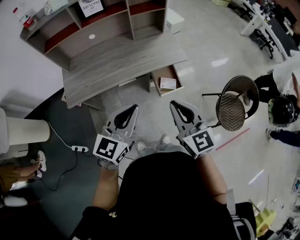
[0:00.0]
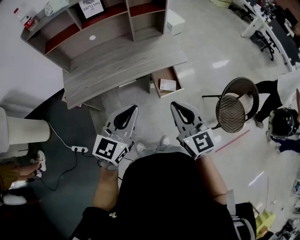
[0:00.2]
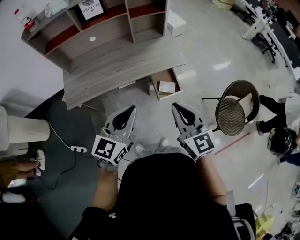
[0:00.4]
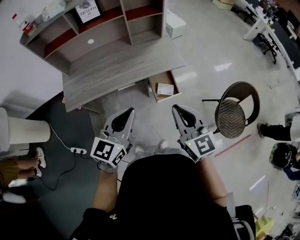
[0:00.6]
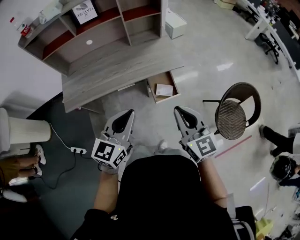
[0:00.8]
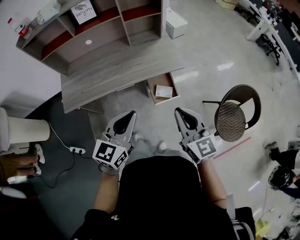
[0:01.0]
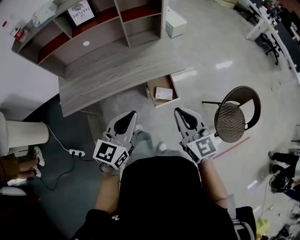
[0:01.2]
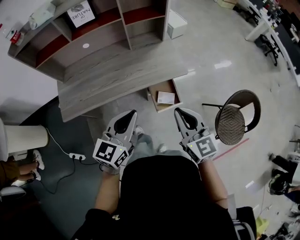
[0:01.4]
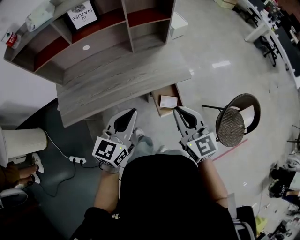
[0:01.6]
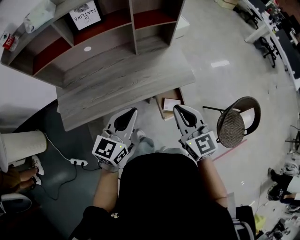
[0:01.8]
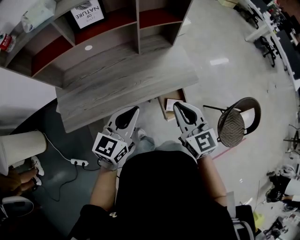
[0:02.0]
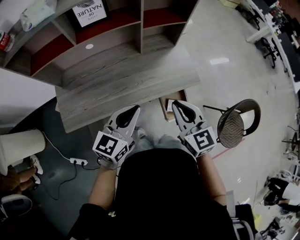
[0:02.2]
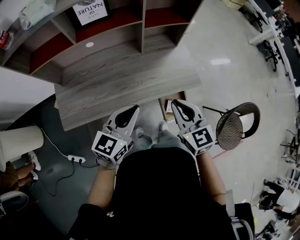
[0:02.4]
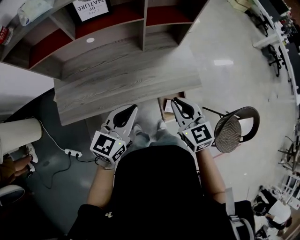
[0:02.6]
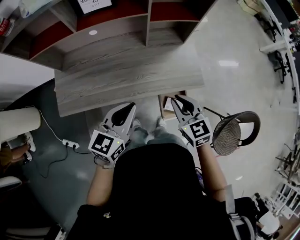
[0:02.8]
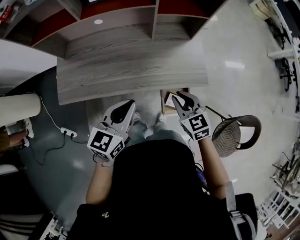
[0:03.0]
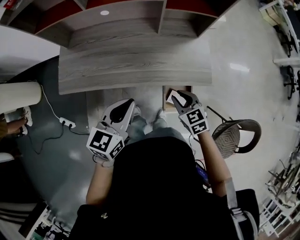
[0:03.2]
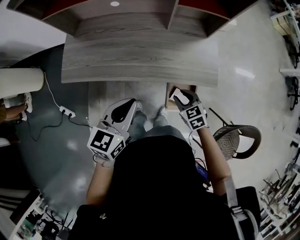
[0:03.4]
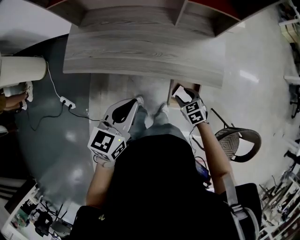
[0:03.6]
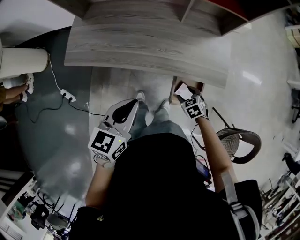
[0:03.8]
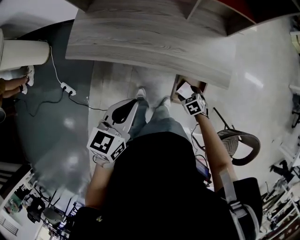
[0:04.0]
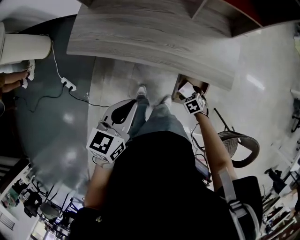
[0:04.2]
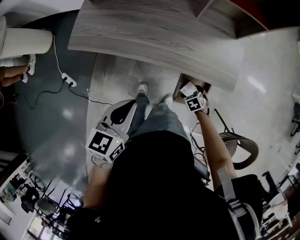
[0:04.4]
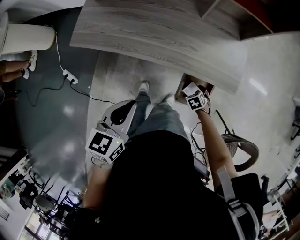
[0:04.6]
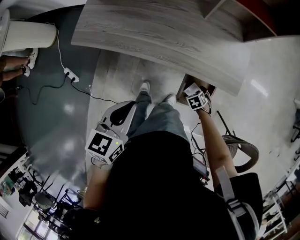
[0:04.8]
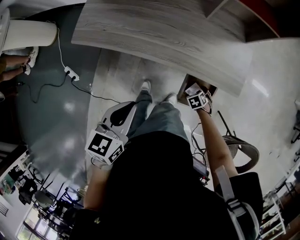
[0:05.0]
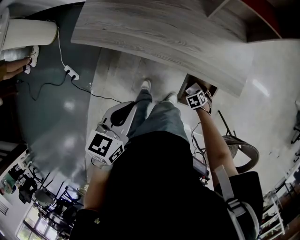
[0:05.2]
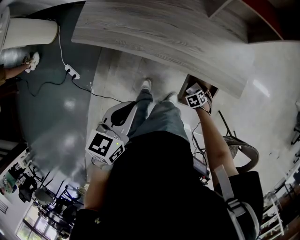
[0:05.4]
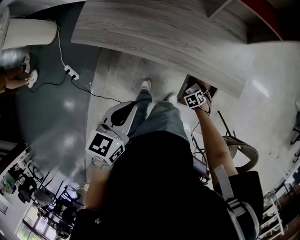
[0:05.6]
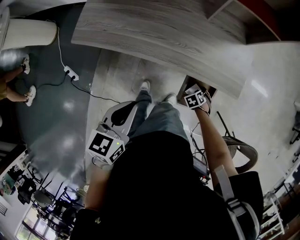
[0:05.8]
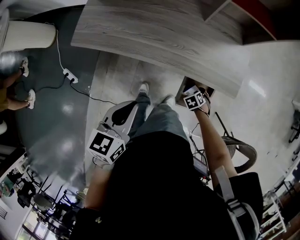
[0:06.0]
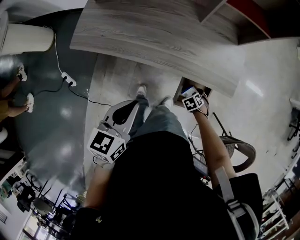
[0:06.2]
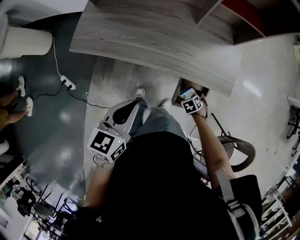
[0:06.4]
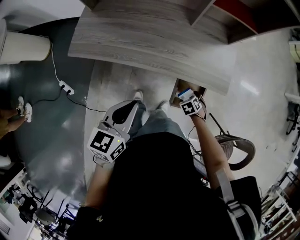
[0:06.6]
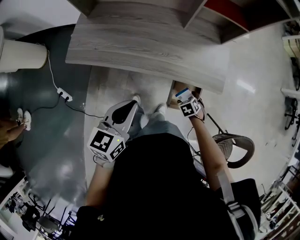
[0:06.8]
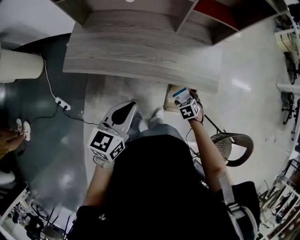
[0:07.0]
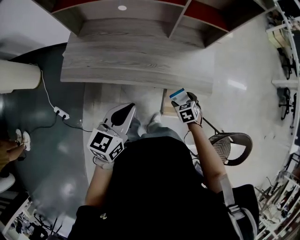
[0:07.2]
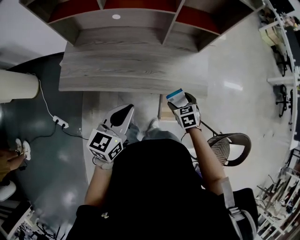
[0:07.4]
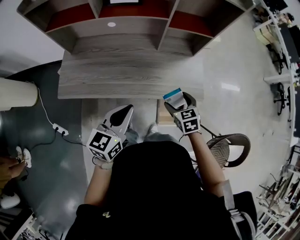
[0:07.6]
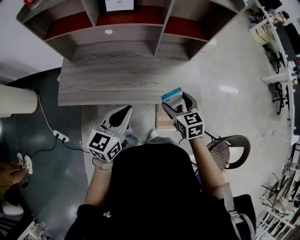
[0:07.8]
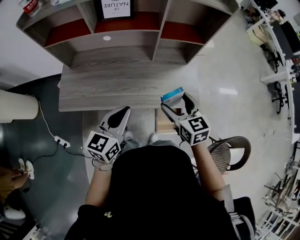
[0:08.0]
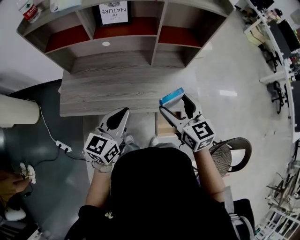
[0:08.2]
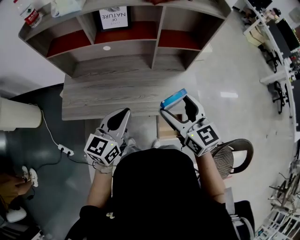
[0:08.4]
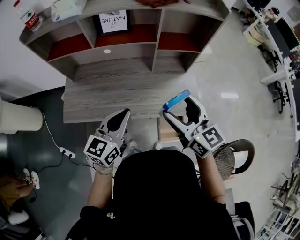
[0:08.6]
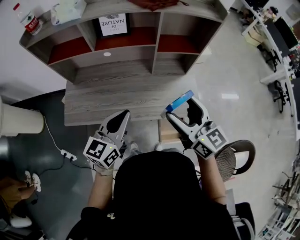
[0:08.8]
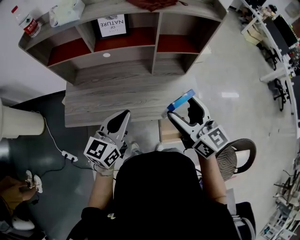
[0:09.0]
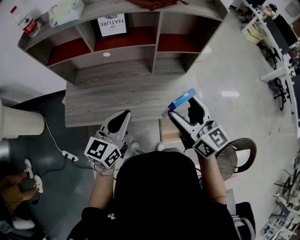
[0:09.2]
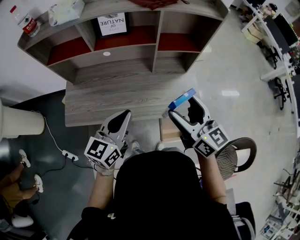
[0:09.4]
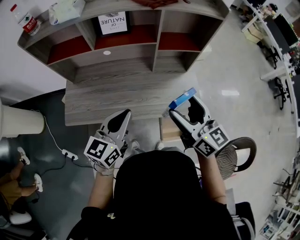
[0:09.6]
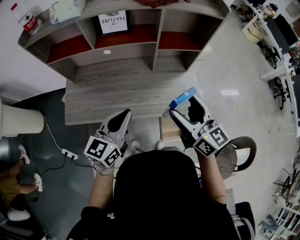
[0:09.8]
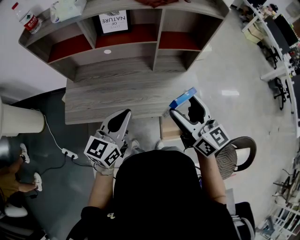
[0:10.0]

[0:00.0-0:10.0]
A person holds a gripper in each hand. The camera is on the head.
0:00.0 to 0:01.4: The left gripper travels forward by about 10 cm; the right gripper goes some 15 cm forward and to the right.
0:01.4 to 0:02.8: The right gripper moves forward, downward and to the left, some 20 cm, and rotates some 20 degrees, while the left gripper travels forward and to the left by some 15 cm.
0:02.8 to 0:04.2: The left gripper moves about 15 cm, and swivels about 30 degrees. The right gripper heads downward, covering about 35 cm, tilts its fingers approximately 50 degrees downward, and opens up.
0:04.2 to 0:05.8: The right gripper moves downward, some 10 cm.
0:05.8 to 0:07.2: The right gripper travels upward by about 20 cm, and rotates about 20 degrees, while the left gripper heads upward, covering roughly 5 cm.
0:07.2 to 0:08.6: The right gripper travels upward by approximately 40 cm, and angles its fingers upward, by some 60 degrees; the left gripper heads upward and forward, covering roughly 10 cm.
0:08.6 to 0:10.0: There are only small adjustments of the grippers.

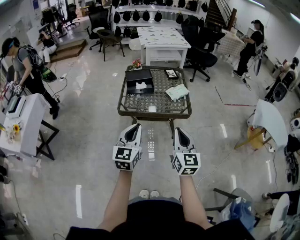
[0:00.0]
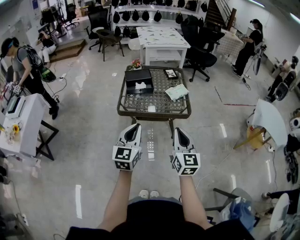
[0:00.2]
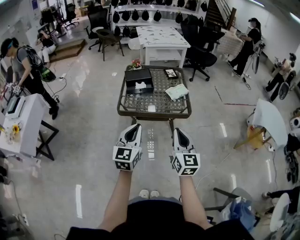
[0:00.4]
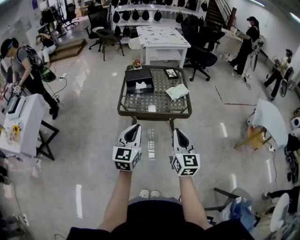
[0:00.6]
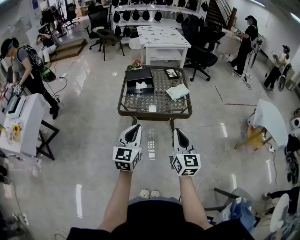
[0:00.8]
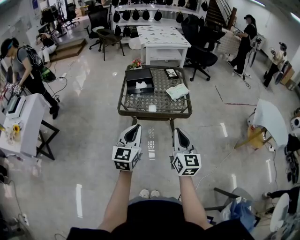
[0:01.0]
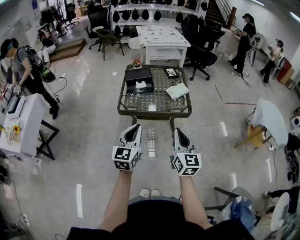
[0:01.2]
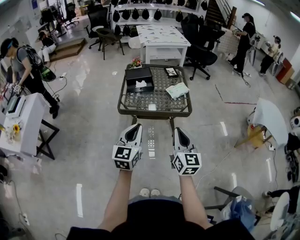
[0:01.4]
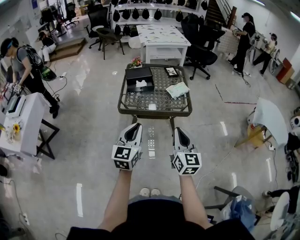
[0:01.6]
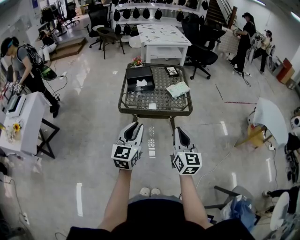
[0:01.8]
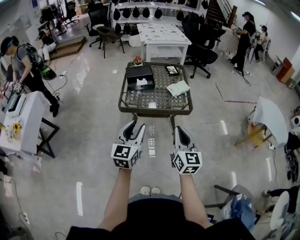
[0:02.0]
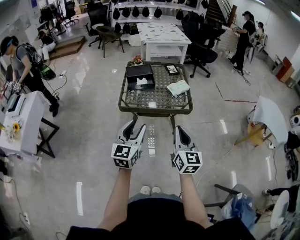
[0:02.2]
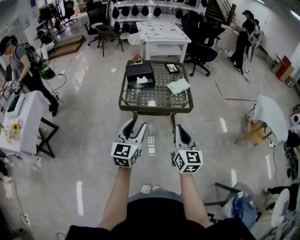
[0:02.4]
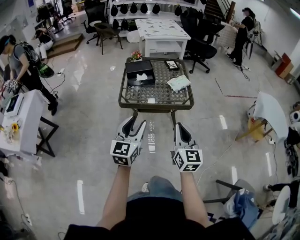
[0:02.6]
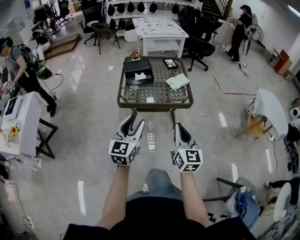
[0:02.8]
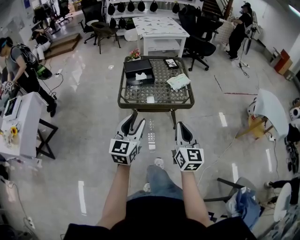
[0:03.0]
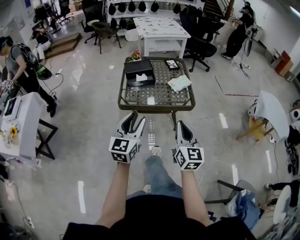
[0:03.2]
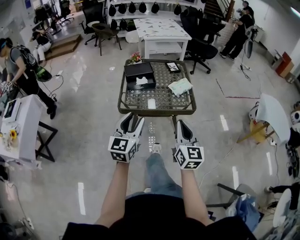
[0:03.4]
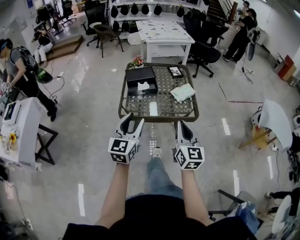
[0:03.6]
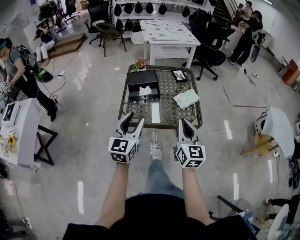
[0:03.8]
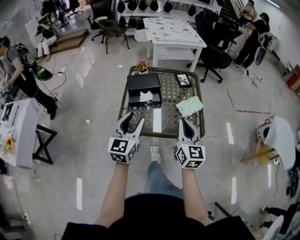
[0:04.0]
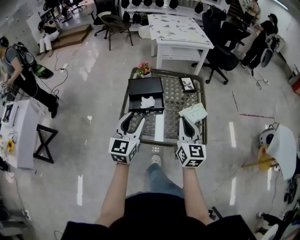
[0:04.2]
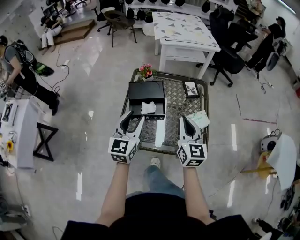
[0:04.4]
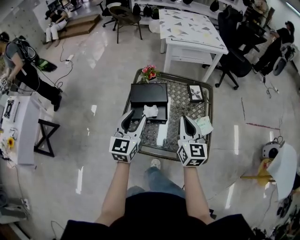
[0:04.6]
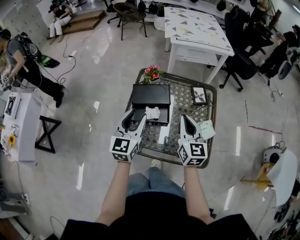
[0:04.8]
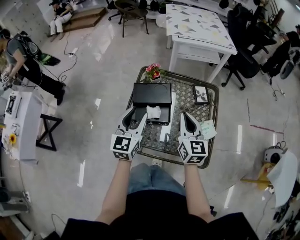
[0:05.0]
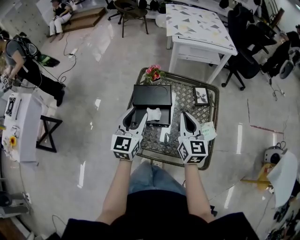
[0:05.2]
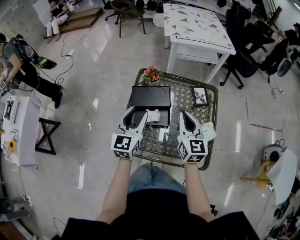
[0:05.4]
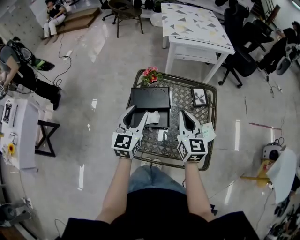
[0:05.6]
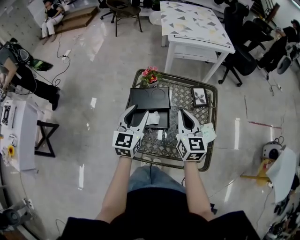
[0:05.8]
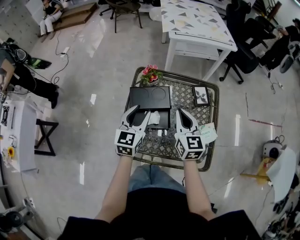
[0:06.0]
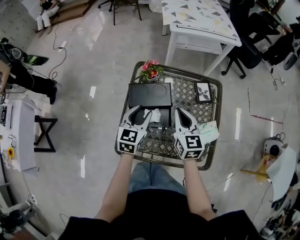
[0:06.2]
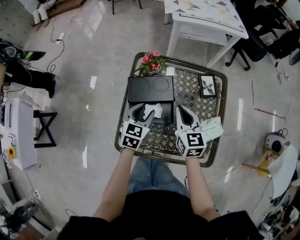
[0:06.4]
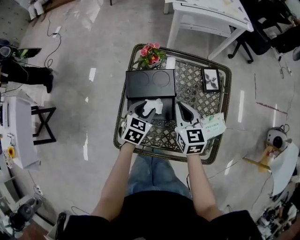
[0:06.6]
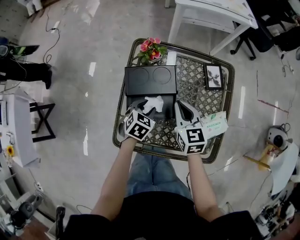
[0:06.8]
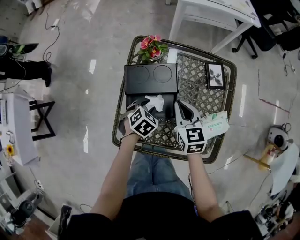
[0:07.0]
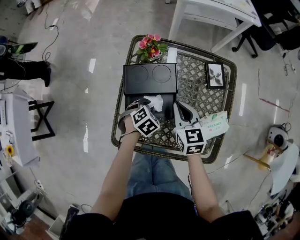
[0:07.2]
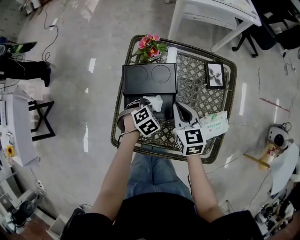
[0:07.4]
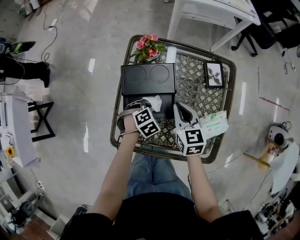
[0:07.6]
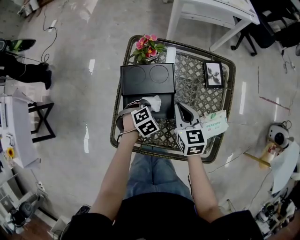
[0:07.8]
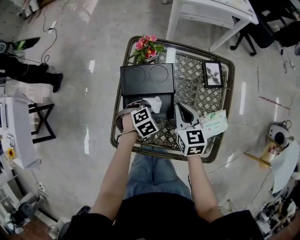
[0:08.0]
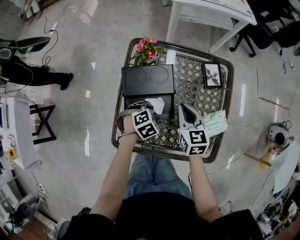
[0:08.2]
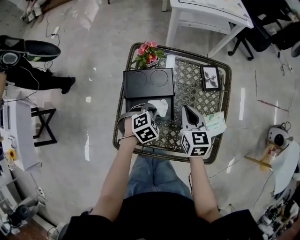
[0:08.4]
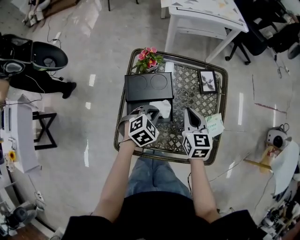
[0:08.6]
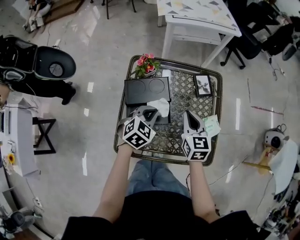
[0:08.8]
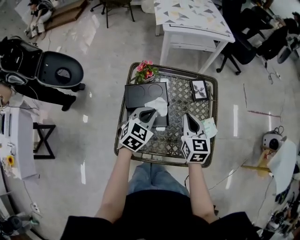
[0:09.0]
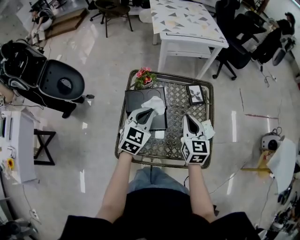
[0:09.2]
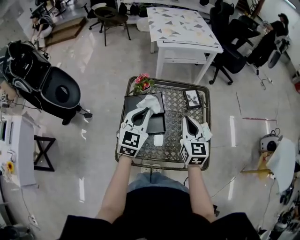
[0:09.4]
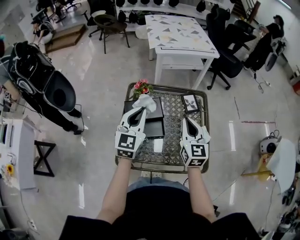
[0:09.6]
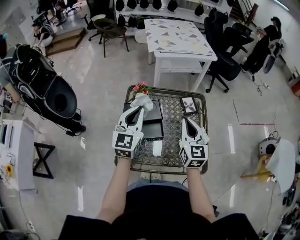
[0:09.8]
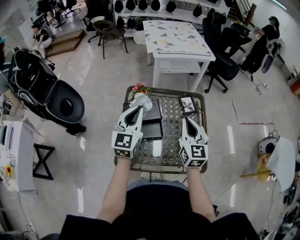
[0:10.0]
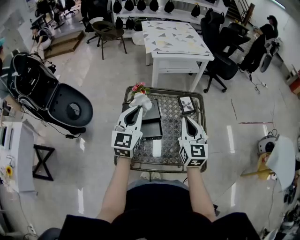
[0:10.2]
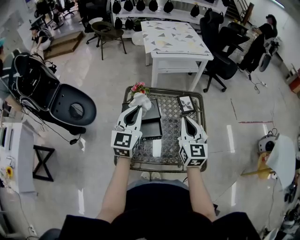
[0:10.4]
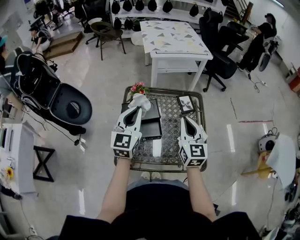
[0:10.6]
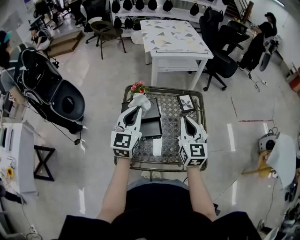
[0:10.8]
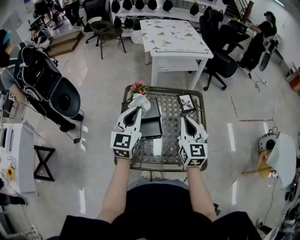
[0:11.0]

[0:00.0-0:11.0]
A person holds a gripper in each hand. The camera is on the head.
0:00.0 to 0:01.6: Both grippers stay about where they are.
0:01.6 to 0:03.2: The left gripper opens up.
0:03.2 to 0:04.8: The two grippers travel together, forward, some 50 cm.
0:04.8 to 0:06.2: The two grippers go roughly 15 cm forward and downward.
0:06.2 to 0:07.8: The left gripper shifts about 20 cm downward, angles its fingers downward, by some 50 degrees, and closes up, while the right gripper moves downward, approximately 10 cm.
0:07.8 to 0:09.4: The left gripper goes about 30 cm upward, and tips its fingers upward by roughly 60 degrees. The right gripper shifts roughly 15 cm upward, and rotates roughly 30 degrees.
0:09.4 to 0:11.0: Both grippers travel together upward, roughly 5 cm.

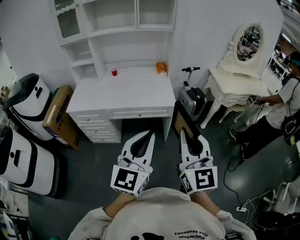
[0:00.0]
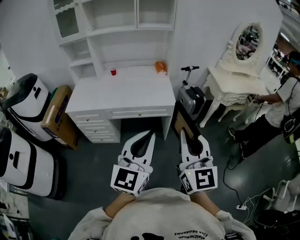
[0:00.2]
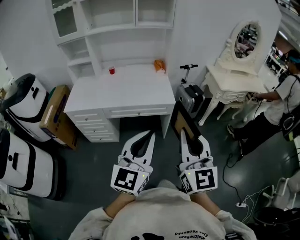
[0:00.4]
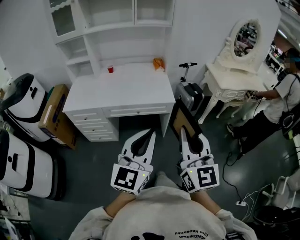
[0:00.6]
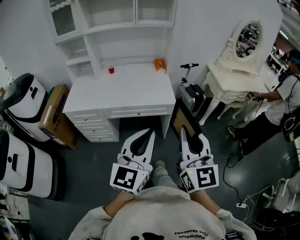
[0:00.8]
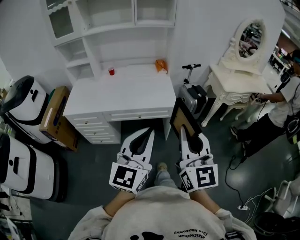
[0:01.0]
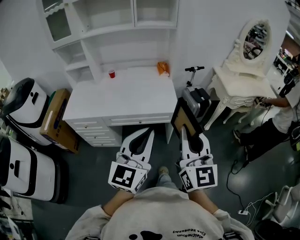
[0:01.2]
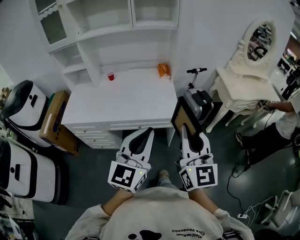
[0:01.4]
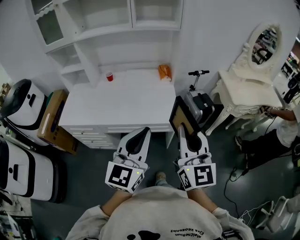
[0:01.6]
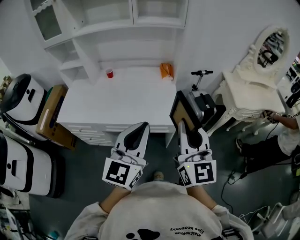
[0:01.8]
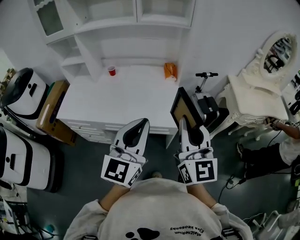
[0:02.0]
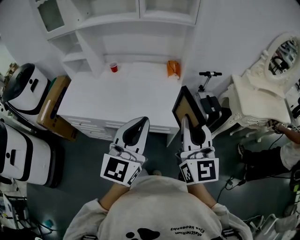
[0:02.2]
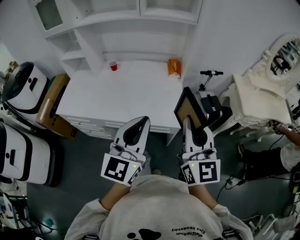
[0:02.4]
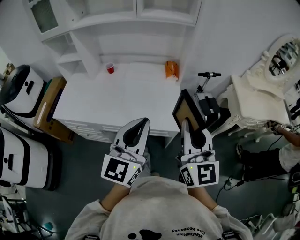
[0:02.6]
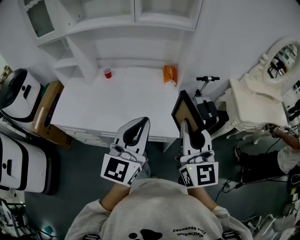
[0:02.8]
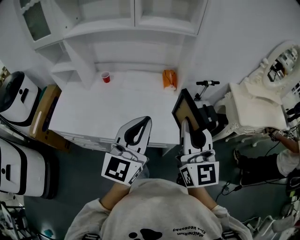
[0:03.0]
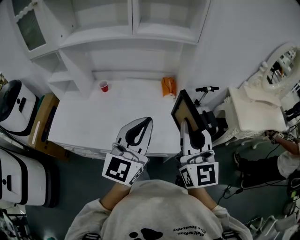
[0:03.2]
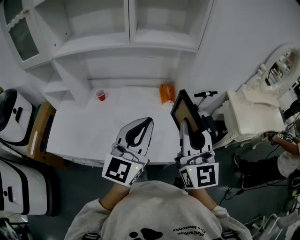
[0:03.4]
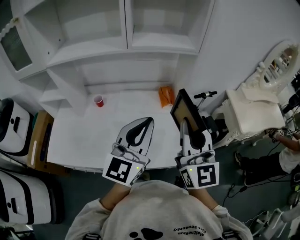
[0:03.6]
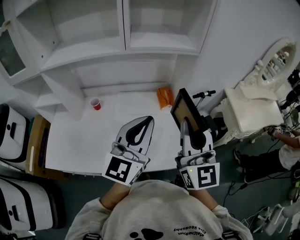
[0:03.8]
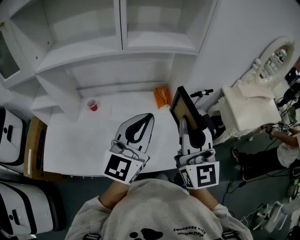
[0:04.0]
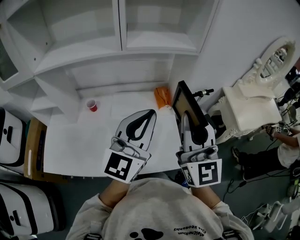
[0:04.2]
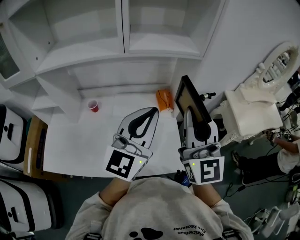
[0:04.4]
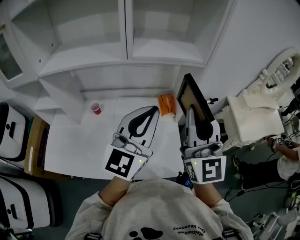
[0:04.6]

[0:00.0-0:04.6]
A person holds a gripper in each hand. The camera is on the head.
0:00.0 to 0:01.6: The grippers both shift forward by approximately 25 cm.
0:01.6 to 0:03.0: Both grippers move forward, some 20 cm.
0:03.0 to 0:04.6: Both grippers move forward, some 25 cm.
